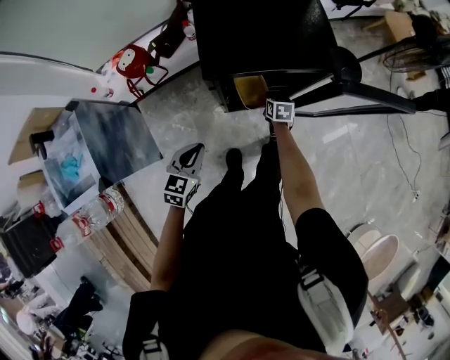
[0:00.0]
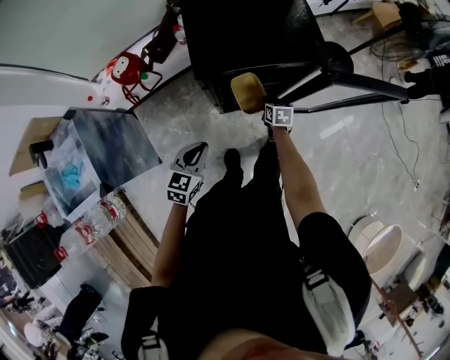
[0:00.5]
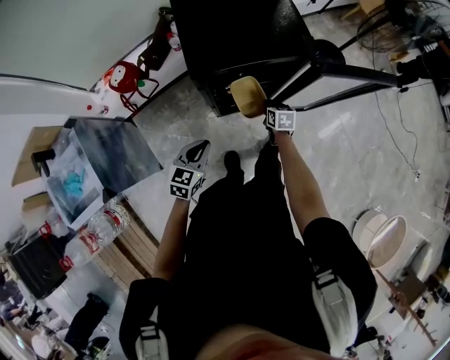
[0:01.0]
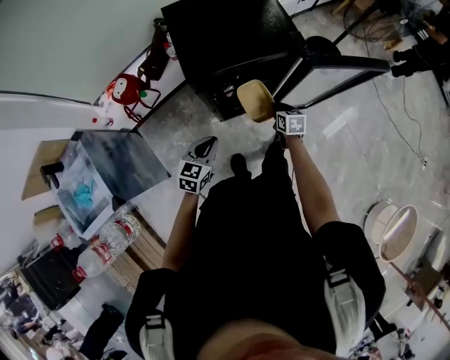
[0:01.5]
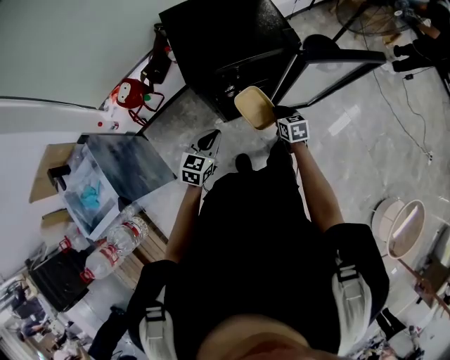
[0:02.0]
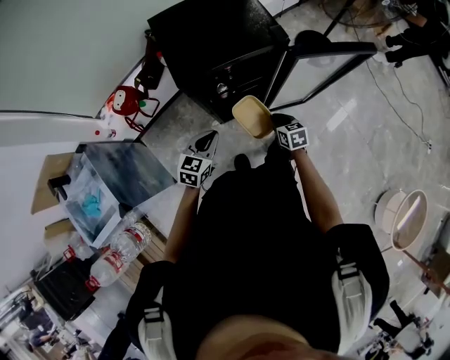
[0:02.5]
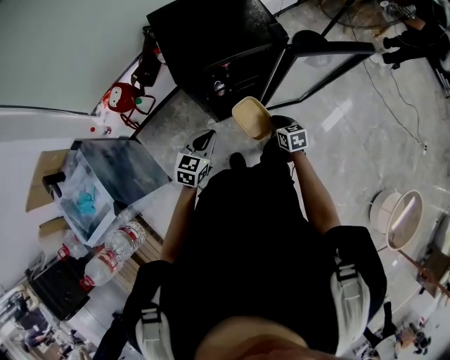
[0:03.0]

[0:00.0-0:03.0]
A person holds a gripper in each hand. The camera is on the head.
0:00.0 to 0:01.5: The left gripper goes about 5 cm to the right. The right gripper is displaced backward, upward and to the right by roughly 15 cm.
0:01.5 to 0:03.0: The right gripper travels backward by some 10 cm.

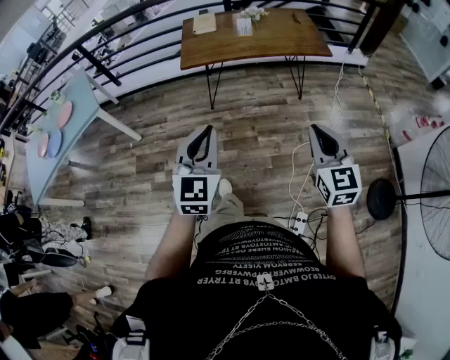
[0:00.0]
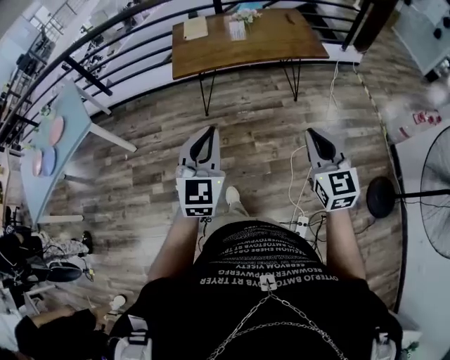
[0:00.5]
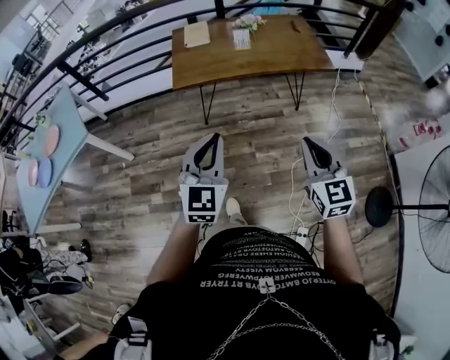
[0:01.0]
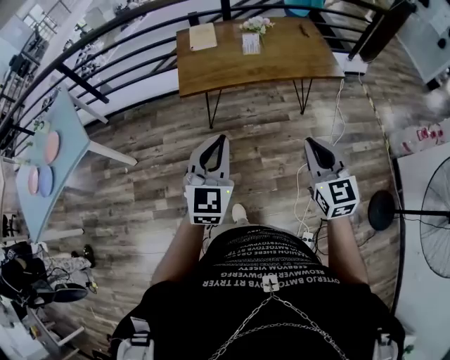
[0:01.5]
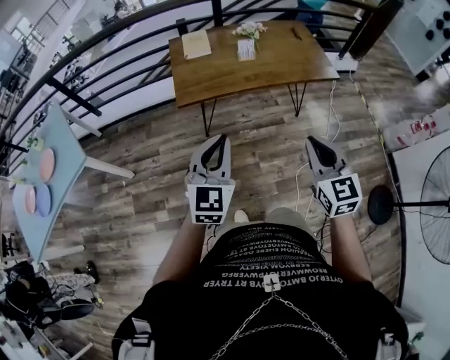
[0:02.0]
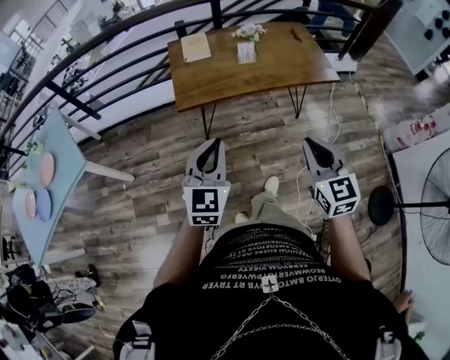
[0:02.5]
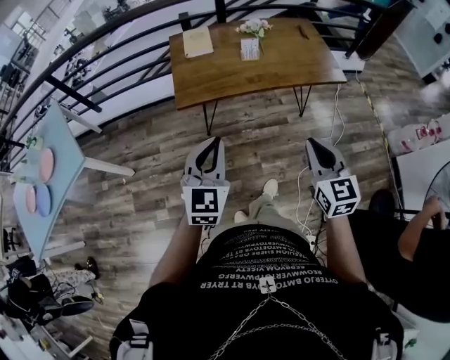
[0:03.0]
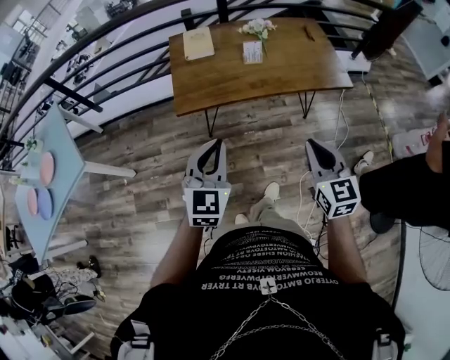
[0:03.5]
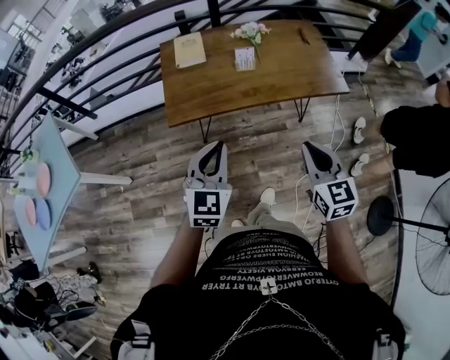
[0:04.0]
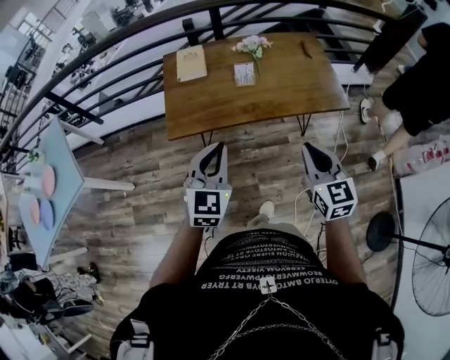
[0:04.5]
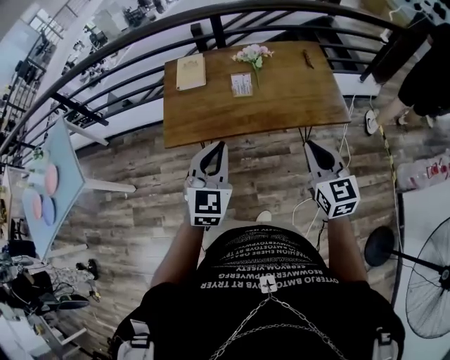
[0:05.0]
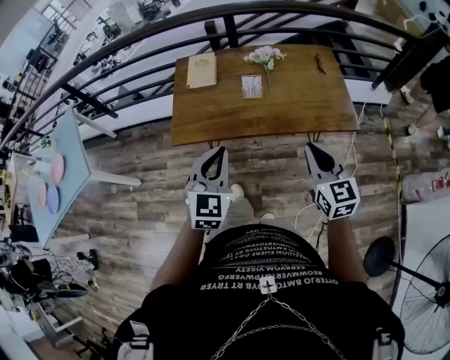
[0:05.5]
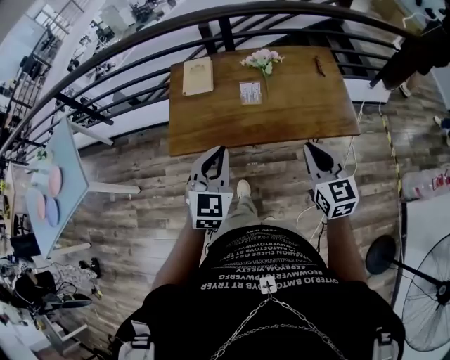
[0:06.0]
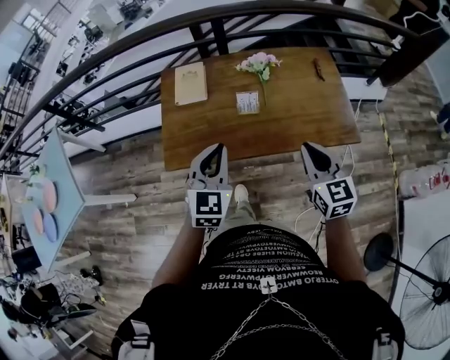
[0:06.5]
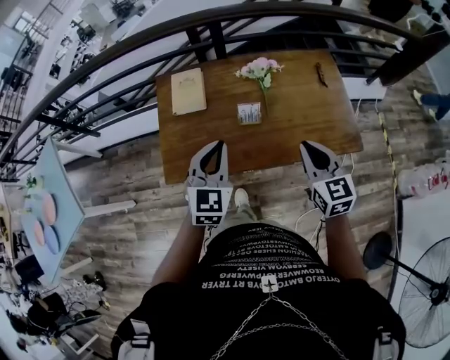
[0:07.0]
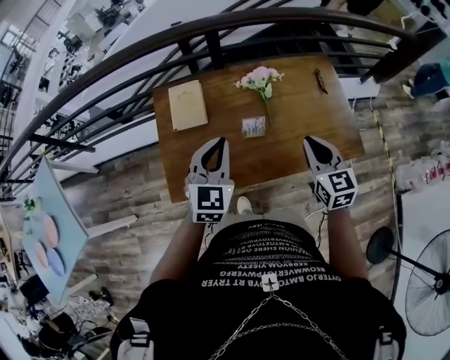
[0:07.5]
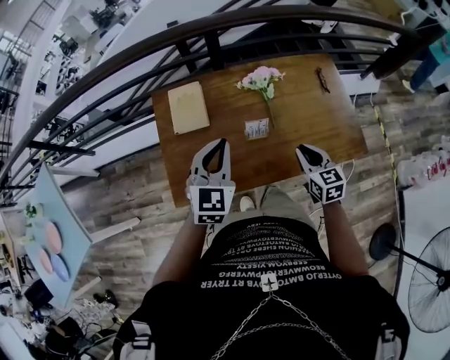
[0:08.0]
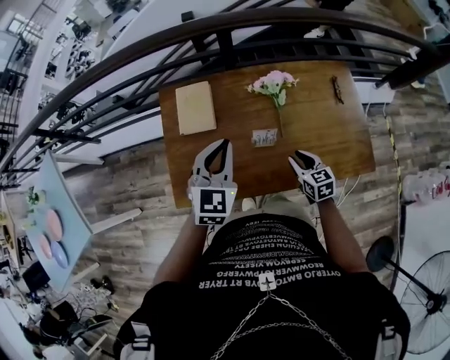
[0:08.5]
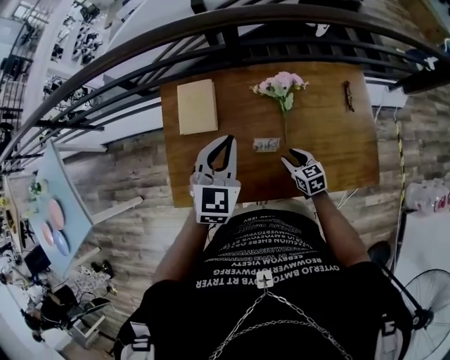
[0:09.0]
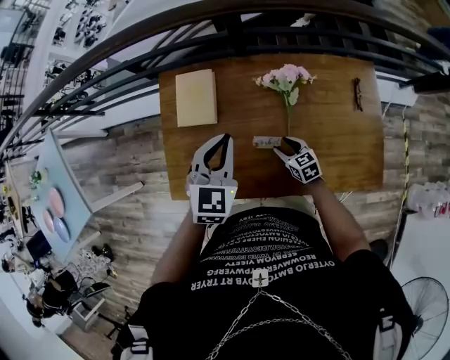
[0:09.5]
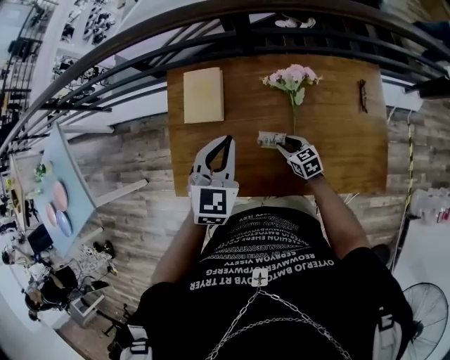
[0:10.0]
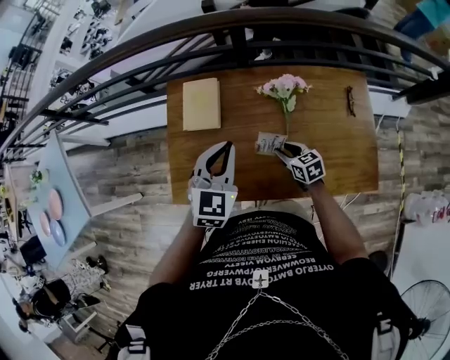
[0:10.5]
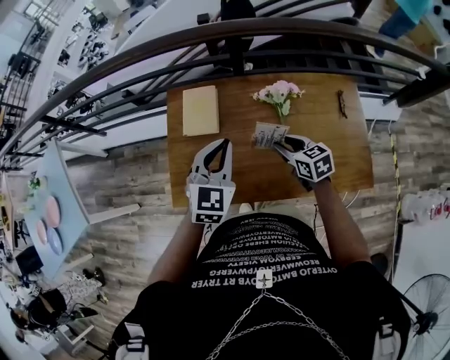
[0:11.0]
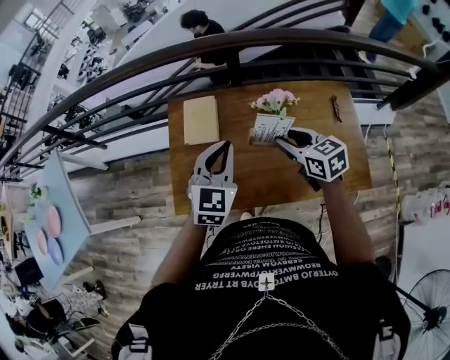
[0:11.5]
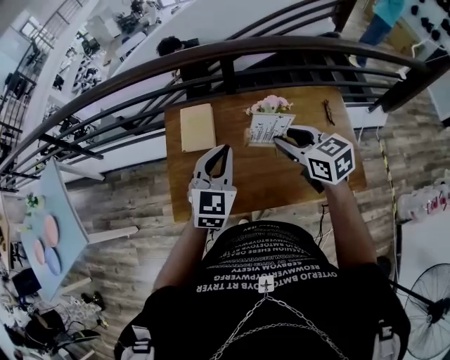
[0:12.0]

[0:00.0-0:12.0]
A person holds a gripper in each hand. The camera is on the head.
0:00.0 to 0:02.0: The left gripper moves forward, approximately 25 cm. Meanwhile the right gripper heads forward and to the left, covering approximately 25 cm.
0:02.0 to 0:04.0: Both grippers move forward, roughly 15 cm.
0:04.0 to 0:06.0: The grippers both shift forward and to the right by about 15 cm.
0:06.0 to 0:08.0: The right gripper goes approximately 25 cm forward and downward, while the left gripper travels forward by roughly 25 cm.
0:08.0 to 0:10.0: The right gripper heads downward and forward, covering roughly 25 cm, rotates approximately 30 degrees, and opens its fingers. Meanwhile the left gripper travels forward by roughly 10 cm.
0:10.0 to 0:12.0: The left gripper is displaced upward by about 10 cm; the right gripper goes some 35 cm upward.

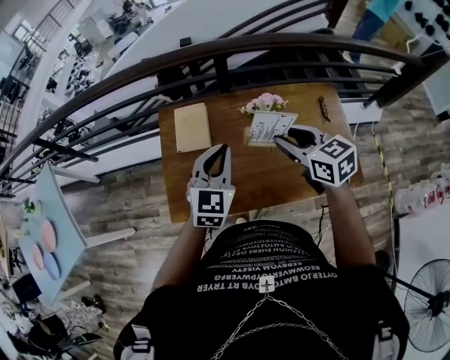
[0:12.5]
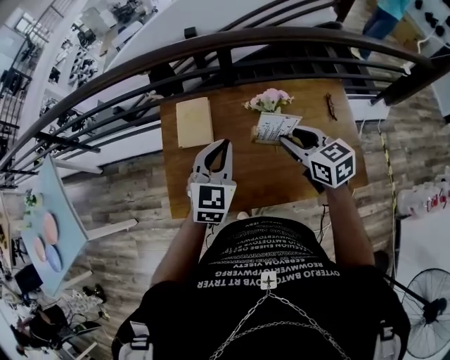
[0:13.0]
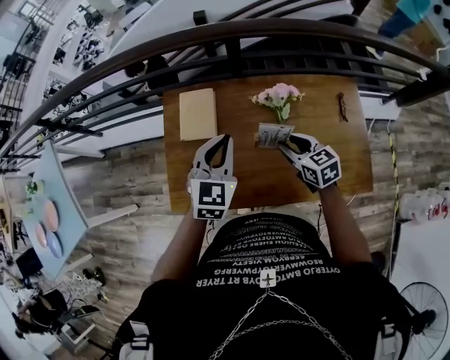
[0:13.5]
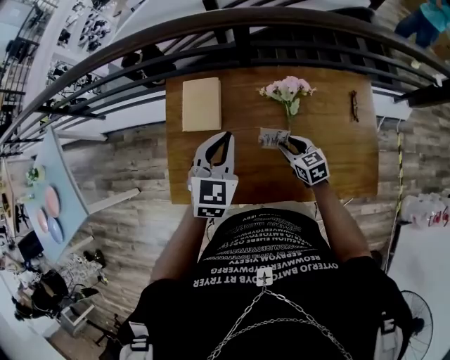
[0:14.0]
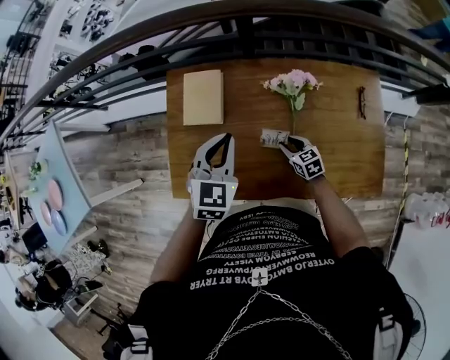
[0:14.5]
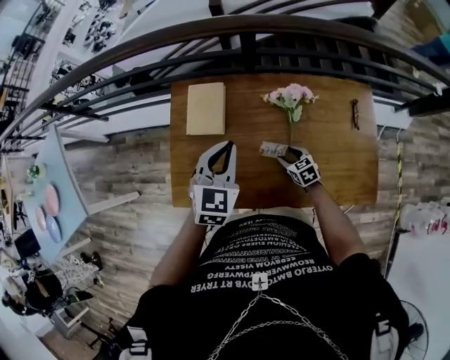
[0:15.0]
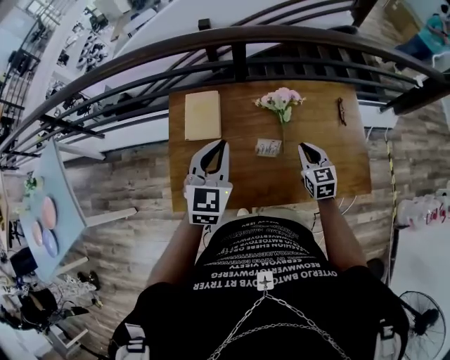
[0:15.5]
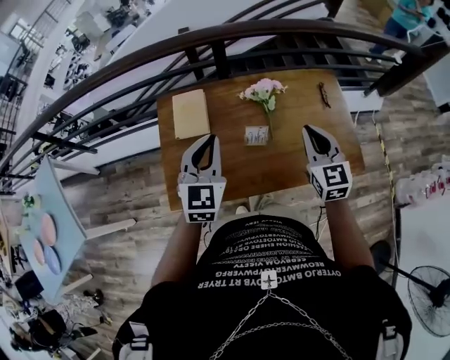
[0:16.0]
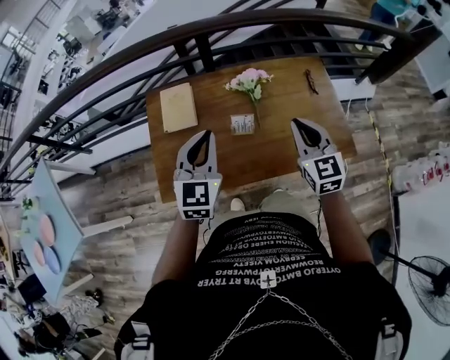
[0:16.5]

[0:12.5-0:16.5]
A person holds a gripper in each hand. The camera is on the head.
0:12.5 to 0:14.5: The right gripper shifts roughly 35 cm downward, while the left gripper is displaced downward and forward by roughly 10 cm.
0:14.5 to 0:16.5: The right gripper goes approximately 35 cm upward, swivels about 40 degrees, and closes its fingers. The left gripper heads backward and upward, covering some 15 cm.

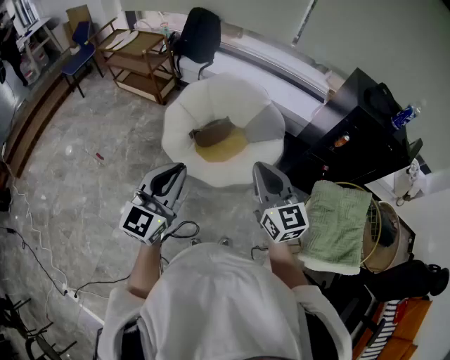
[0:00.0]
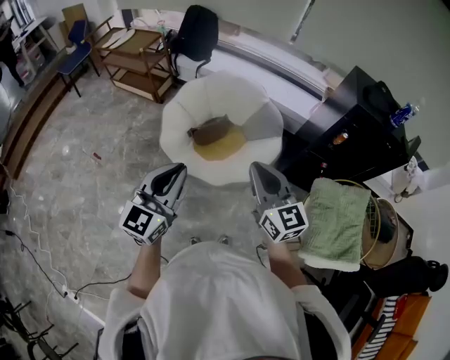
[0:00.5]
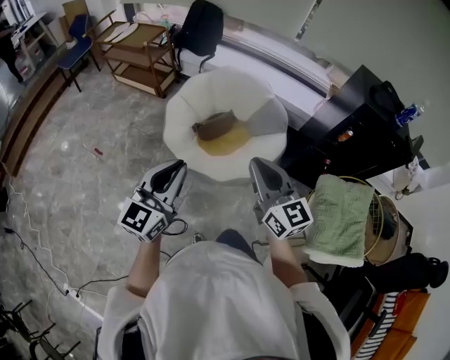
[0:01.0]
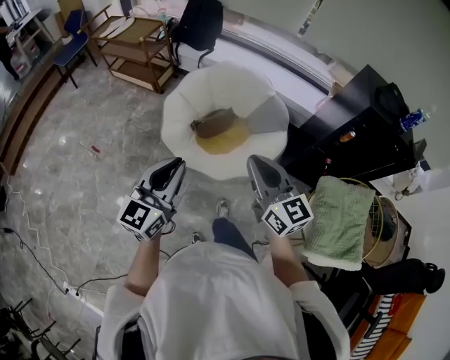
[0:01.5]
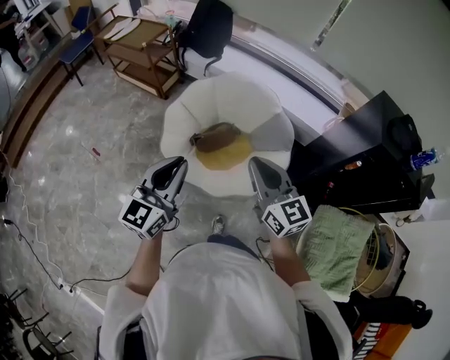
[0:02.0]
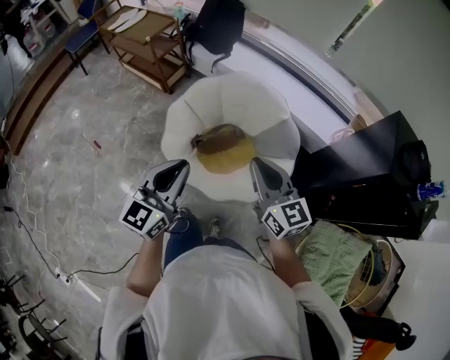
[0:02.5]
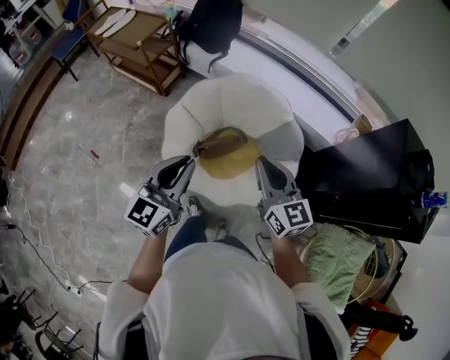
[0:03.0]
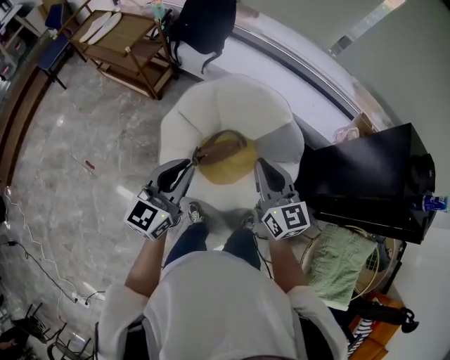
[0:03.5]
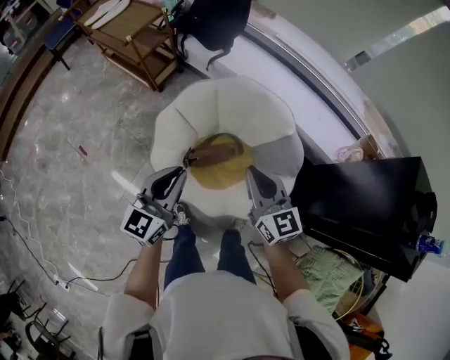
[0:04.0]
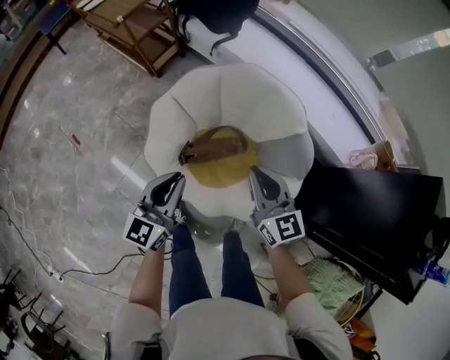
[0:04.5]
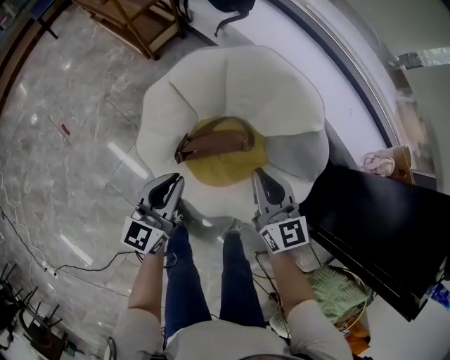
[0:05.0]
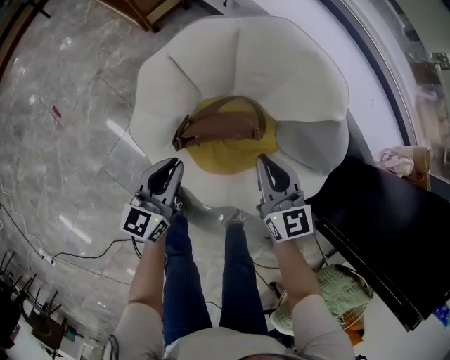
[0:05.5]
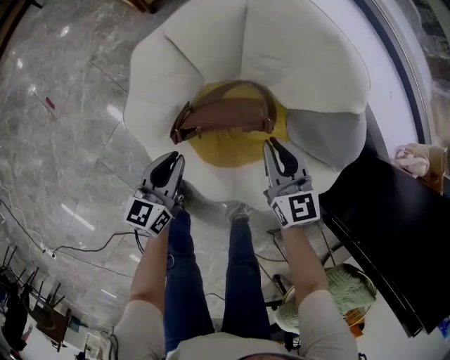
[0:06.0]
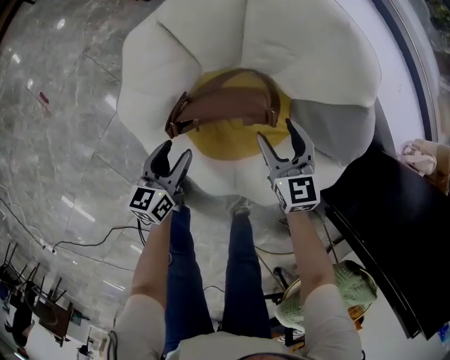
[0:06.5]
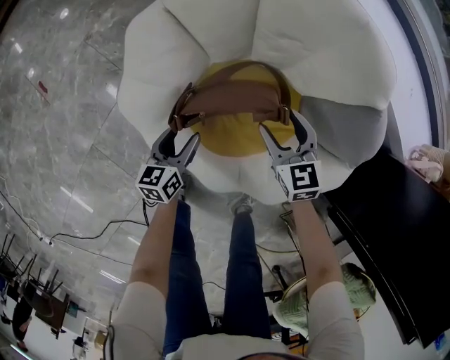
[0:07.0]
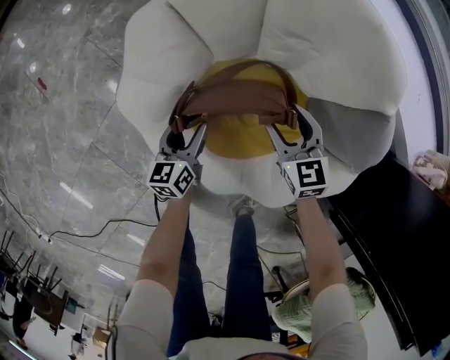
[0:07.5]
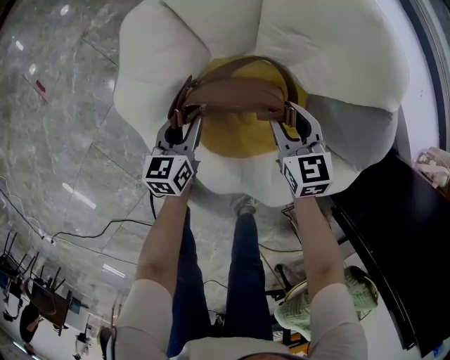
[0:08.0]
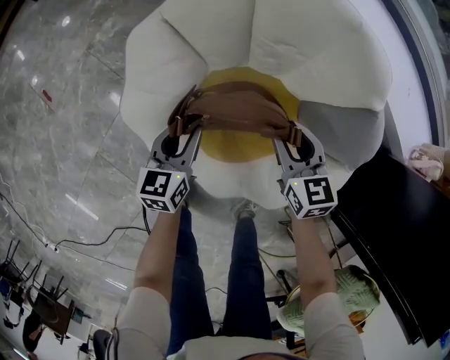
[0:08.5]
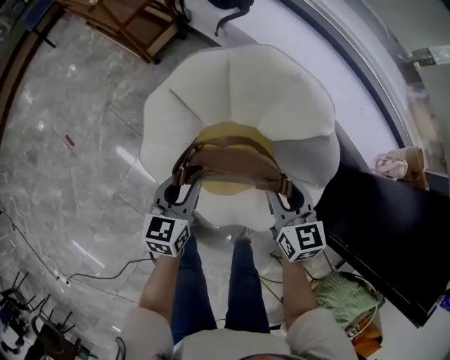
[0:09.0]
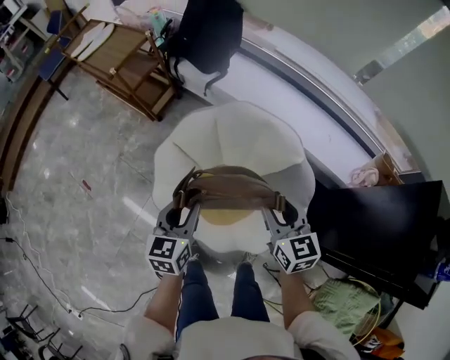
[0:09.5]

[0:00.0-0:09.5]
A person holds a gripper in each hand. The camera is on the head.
0:00.0 to 0:02.0: The two grippers go roughly 15 cm forward.
0:02.0 to 0:04.0: The grippers both shift forward and downward by approximately 25 cm.
0:04.0 to 0:05.5: The two grippers go approximately 30 cm downward.
0:05.5 to 0:07.5: Both grippers travel together downward, about 25 cm. The right gripper opens up. Meanwhile the left gripper turns by roughly 20 degrees, and opens its fingers.
0:07.5 to 0:09.5: Both grippers move upward, approximately 40 cm. The left gripper turns by approximately 30 degrees, and closes up; the right gripper rotates some 20 degrees, and closes.
